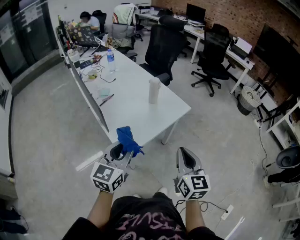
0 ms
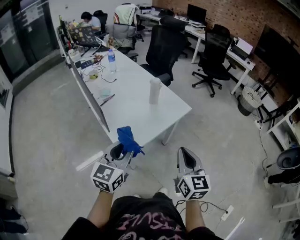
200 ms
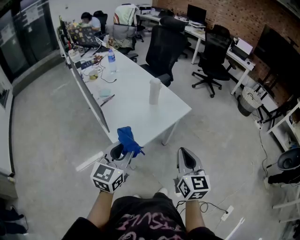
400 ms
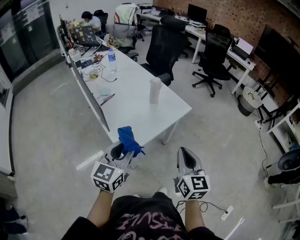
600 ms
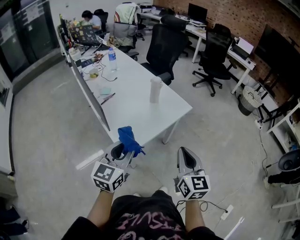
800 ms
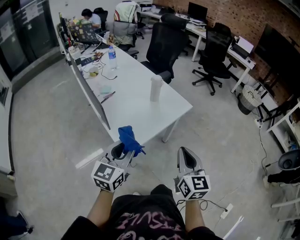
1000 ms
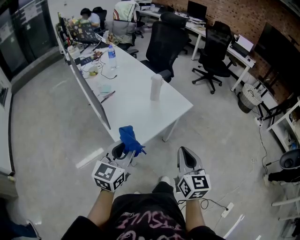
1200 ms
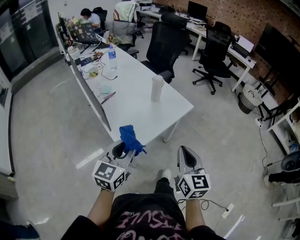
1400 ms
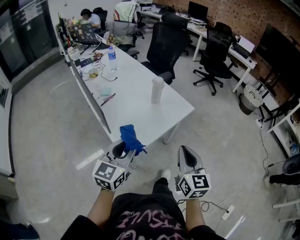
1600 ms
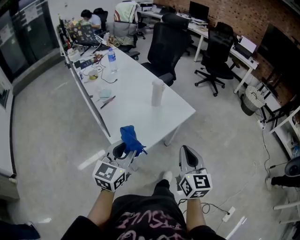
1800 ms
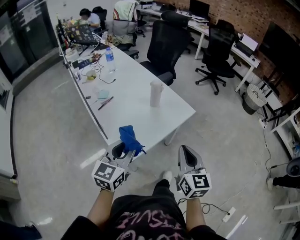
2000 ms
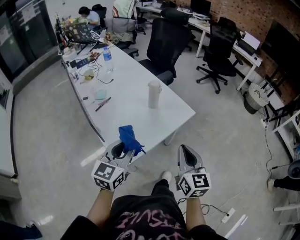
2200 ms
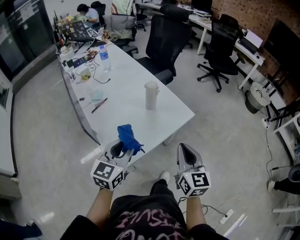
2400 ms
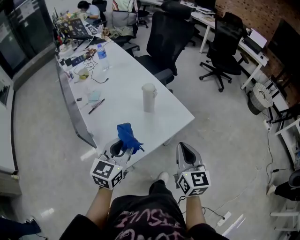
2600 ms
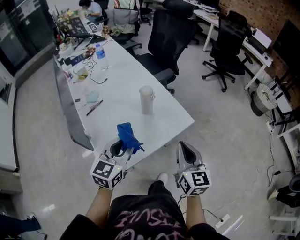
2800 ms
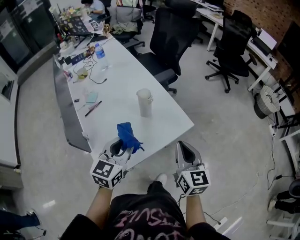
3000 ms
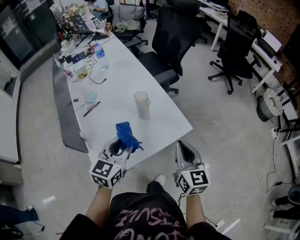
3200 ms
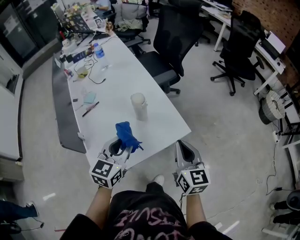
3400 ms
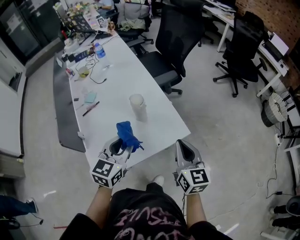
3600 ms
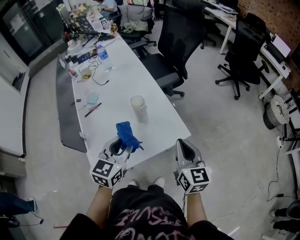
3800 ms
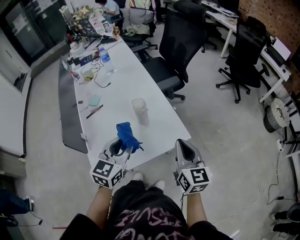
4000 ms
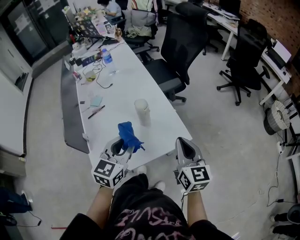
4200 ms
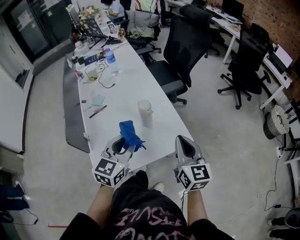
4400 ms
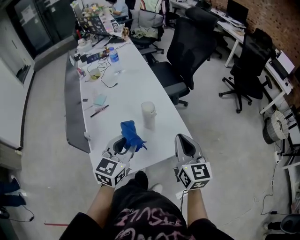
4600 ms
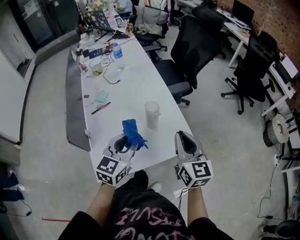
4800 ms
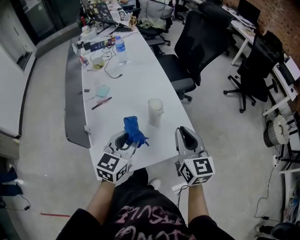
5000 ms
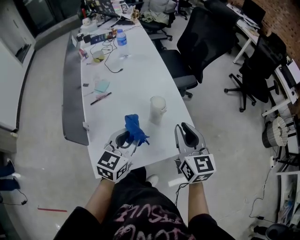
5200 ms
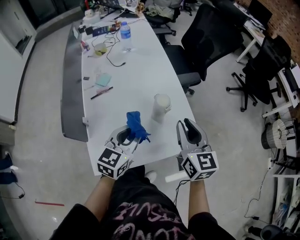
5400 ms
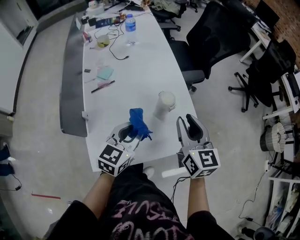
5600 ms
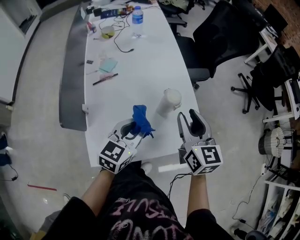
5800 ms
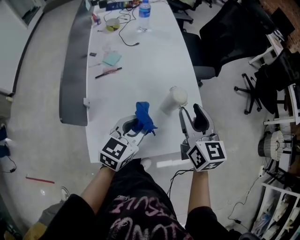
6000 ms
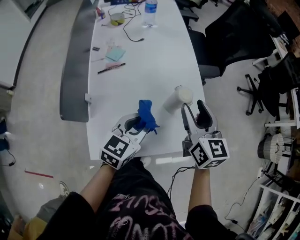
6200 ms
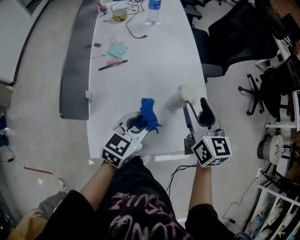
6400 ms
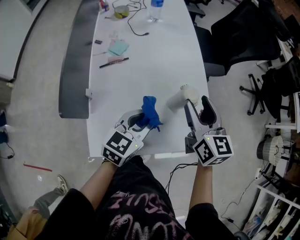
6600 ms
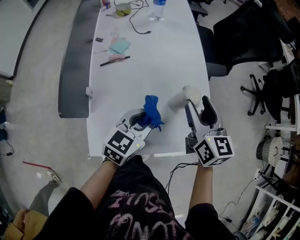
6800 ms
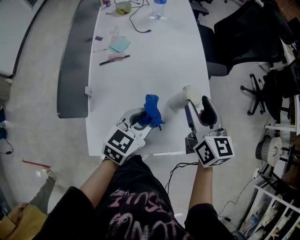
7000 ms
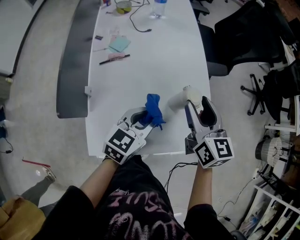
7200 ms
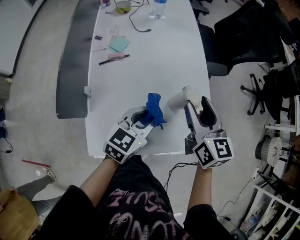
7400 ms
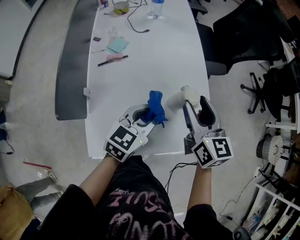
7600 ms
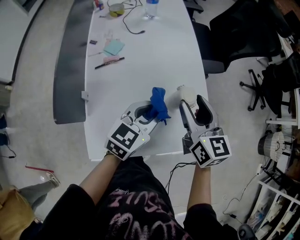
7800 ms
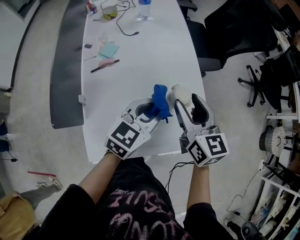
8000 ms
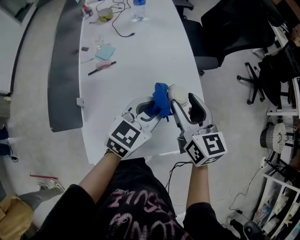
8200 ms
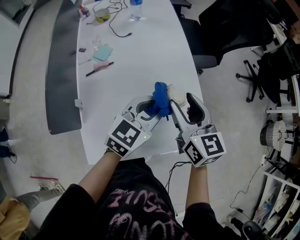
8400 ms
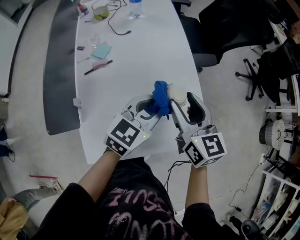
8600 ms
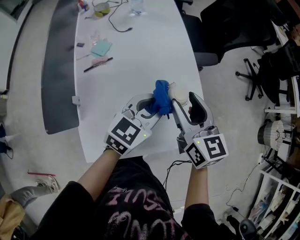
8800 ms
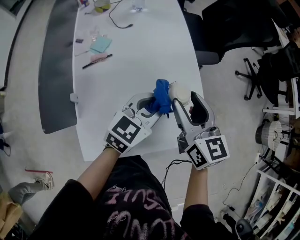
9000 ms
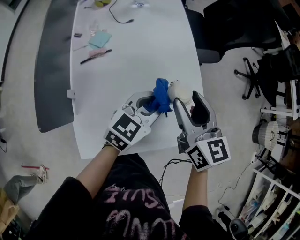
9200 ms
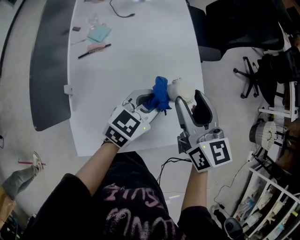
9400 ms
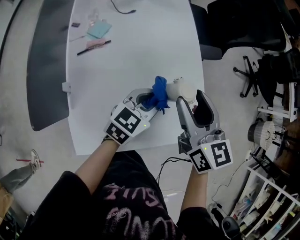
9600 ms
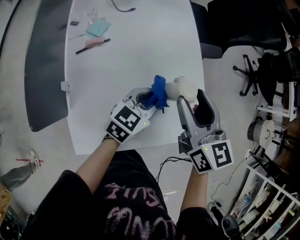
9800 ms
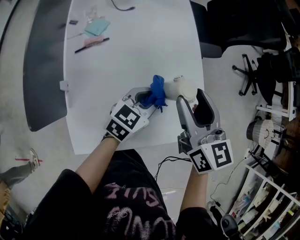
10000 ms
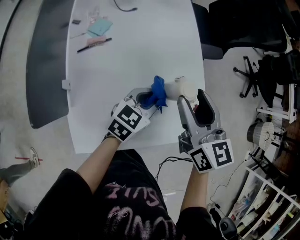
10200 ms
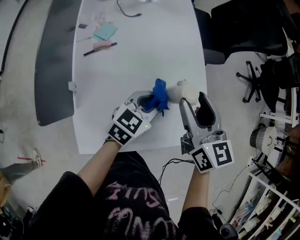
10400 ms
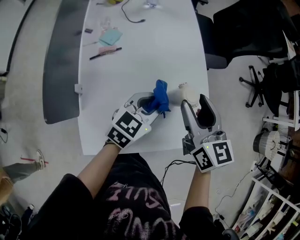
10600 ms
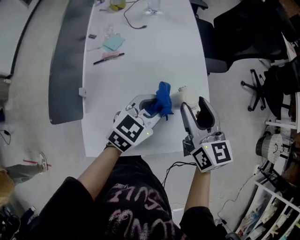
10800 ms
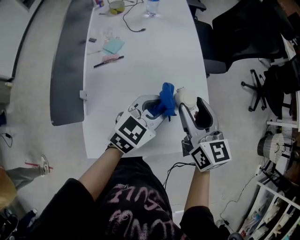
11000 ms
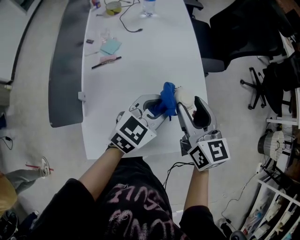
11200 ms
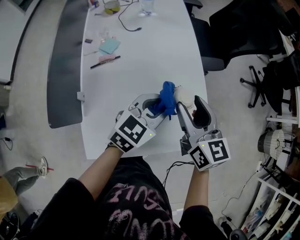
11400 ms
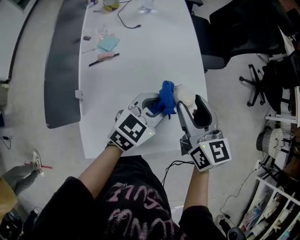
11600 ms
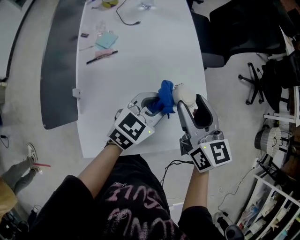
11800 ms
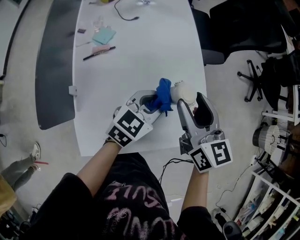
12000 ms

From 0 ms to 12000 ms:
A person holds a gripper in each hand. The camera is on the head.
From 0 ms to 1600 ms: There are only small adjustments of the grippers.
From 1600 ms to 3000 ms: Both grippers move forward, approximately 25 cm.
From 3000 ms to 4400 ms: The left gripper moves some 5 cm; the right gripper travels forward by approximately 10 cm.
From 4400 ms to 6000 ms: The right gripper shifts roughly 20 cm forward and to the left, and opens up, while the left gripper moves downward, forward and to the left, approximately 15 cm.
From 6000 ms to 7600 ms: The grippers make only small movements.
From 7600 ms to 9000 ms: The left gripper ends up roughly 5 cm from where it was.
From 9000 ms to 10400 ms: The left gripper goes about 5 cm downward.

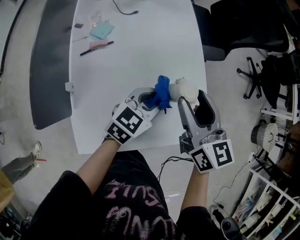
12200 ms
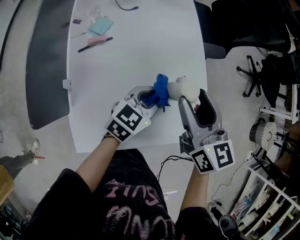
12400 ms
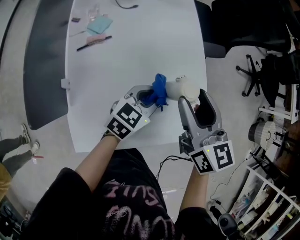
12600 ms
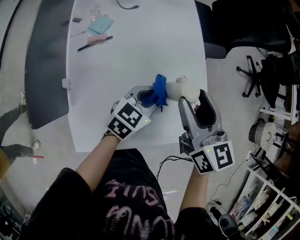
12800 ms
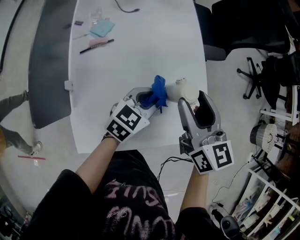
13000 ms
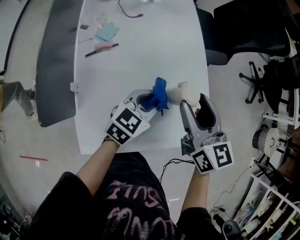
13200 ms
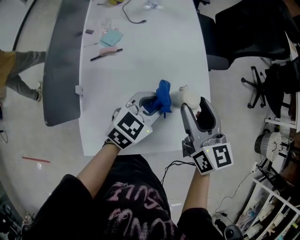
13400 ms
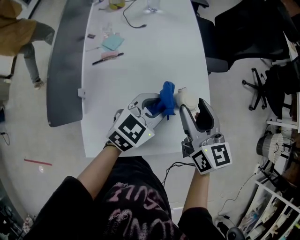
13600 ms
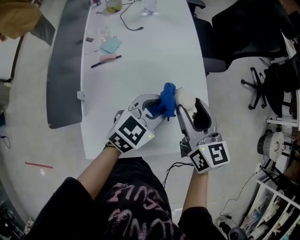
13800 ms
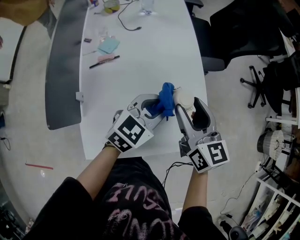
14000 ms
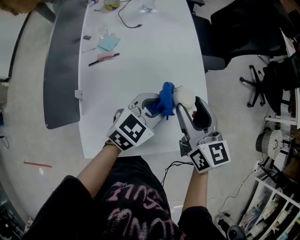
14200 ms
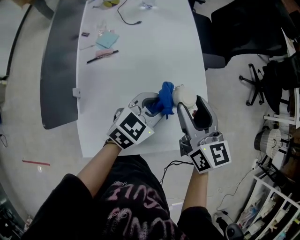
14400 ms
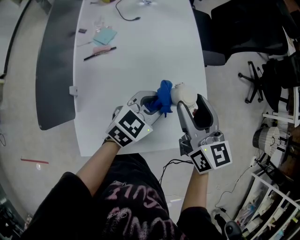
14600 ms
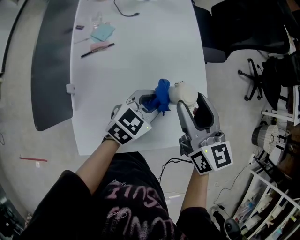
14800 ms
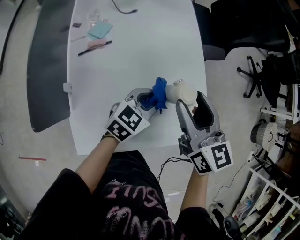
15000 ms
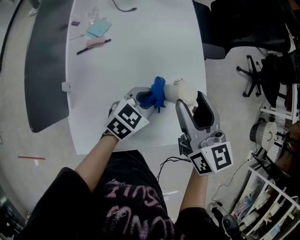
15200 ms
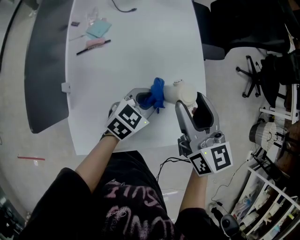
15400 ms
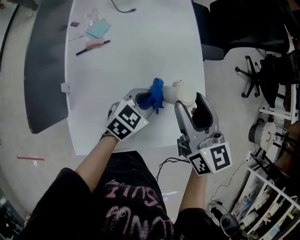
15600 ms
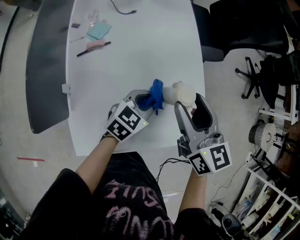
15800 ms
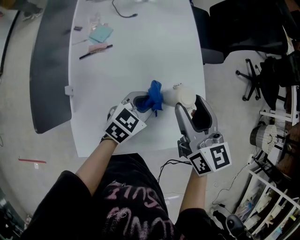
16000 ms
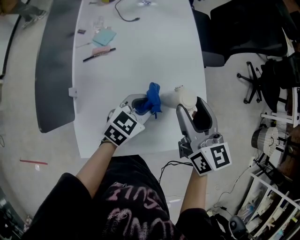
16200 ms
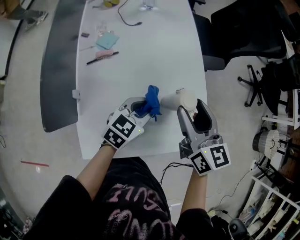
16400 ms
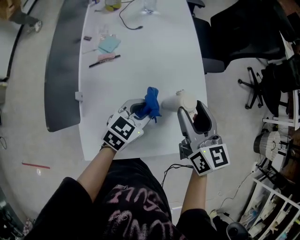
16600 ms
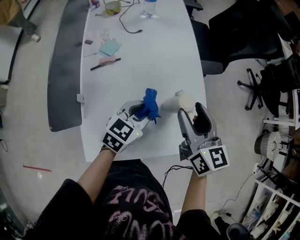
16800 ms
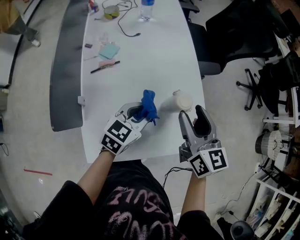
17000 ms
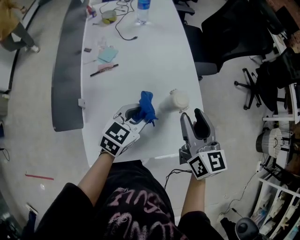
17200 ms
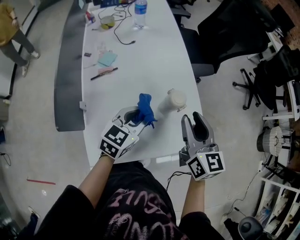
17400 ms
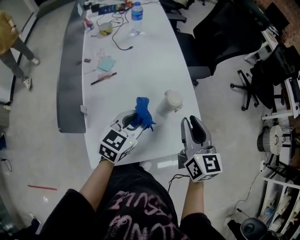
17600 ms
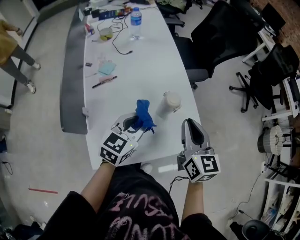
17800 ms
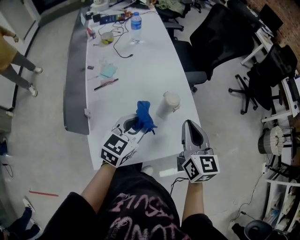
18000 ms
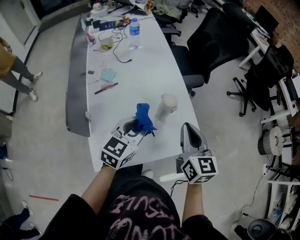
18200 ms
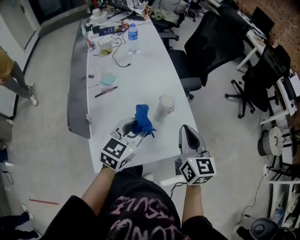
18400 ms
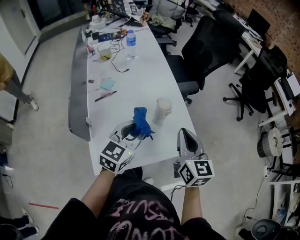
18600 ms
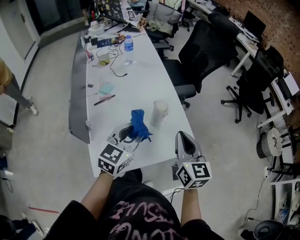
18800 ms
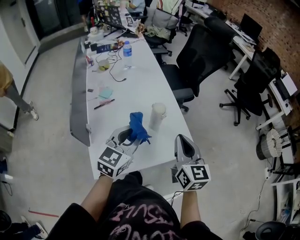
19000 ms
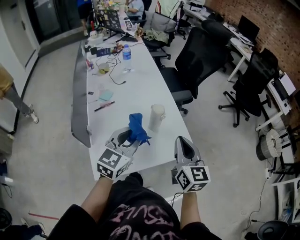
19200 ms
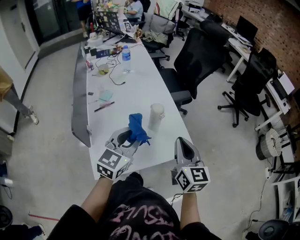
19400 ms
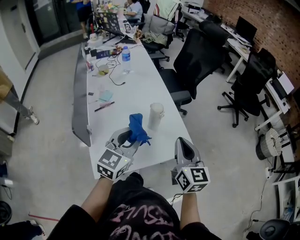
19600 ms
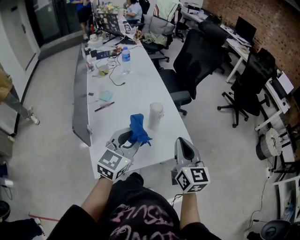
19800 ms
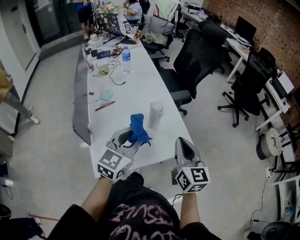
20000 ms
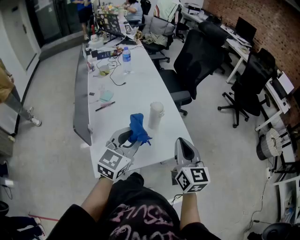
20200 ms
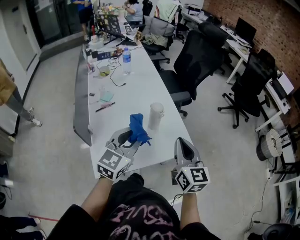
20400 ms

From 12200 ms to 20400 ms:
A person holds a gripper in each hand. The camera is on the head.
From 12200 ms to 13800 ms: The left gripper travels upward by some 5 cm.
From 13800 ms to 15400 ms: The left gripper goes about 10 cm downward.
From 15400 ms to 17200 ms: The left gripper is displaced upward by about 5 cm.
From 17200 ms to 18800 ms: The left gripper shifts about 15 cm upward and backward. Meanwhile the right gripper moves backward and to the right, roughly 10 cm, and closes up.
From 18800 ms to 20400 ms: The left gripper moves approximately 5 cm; the right gripper changes place by some 5 cm.

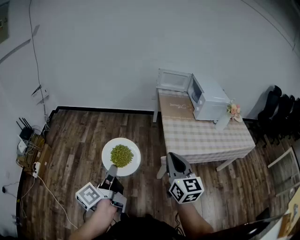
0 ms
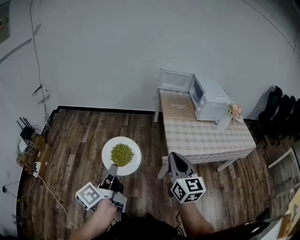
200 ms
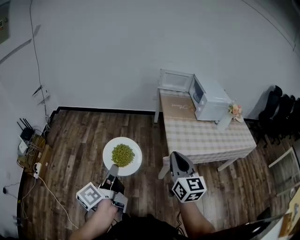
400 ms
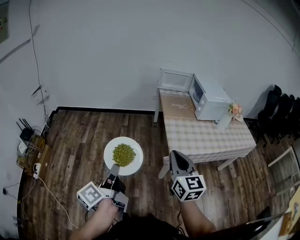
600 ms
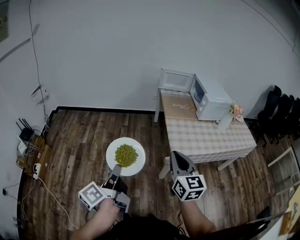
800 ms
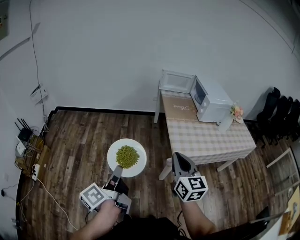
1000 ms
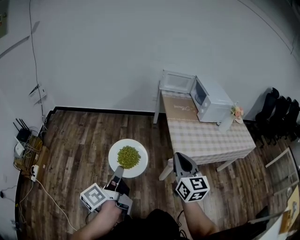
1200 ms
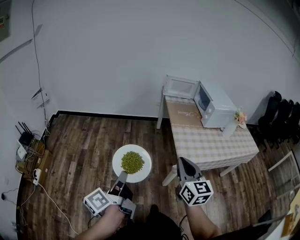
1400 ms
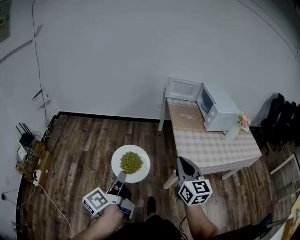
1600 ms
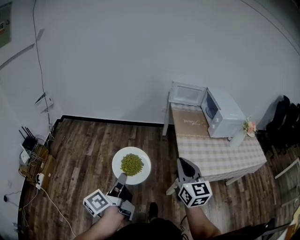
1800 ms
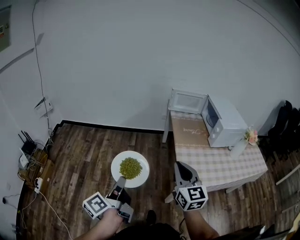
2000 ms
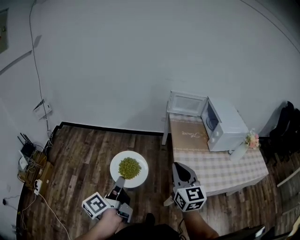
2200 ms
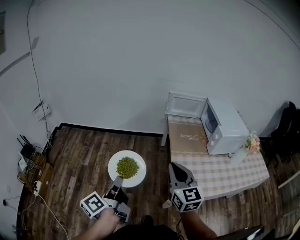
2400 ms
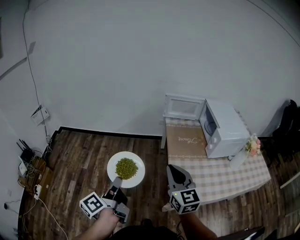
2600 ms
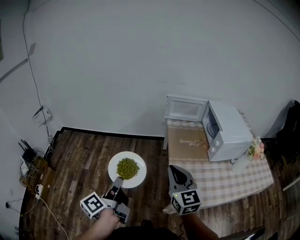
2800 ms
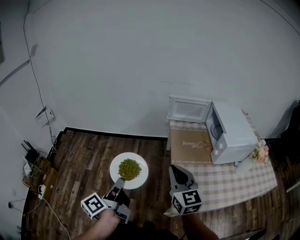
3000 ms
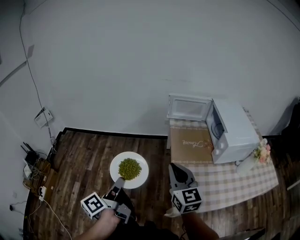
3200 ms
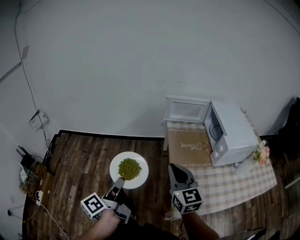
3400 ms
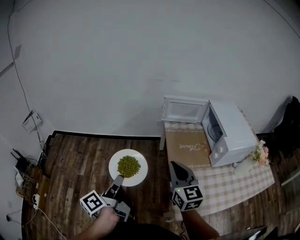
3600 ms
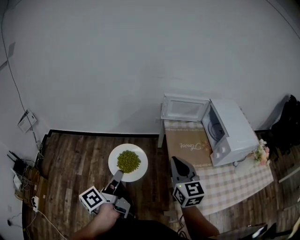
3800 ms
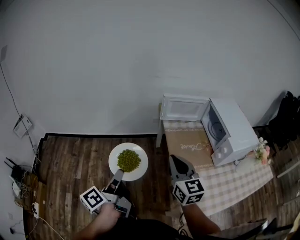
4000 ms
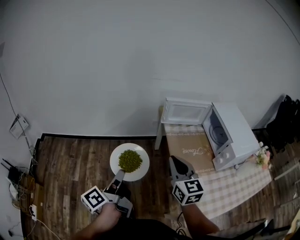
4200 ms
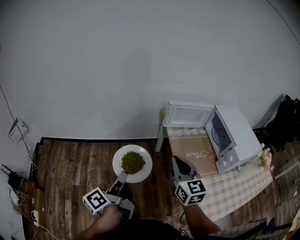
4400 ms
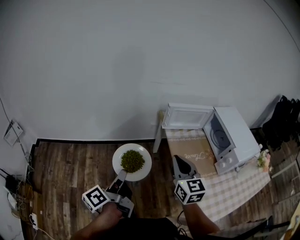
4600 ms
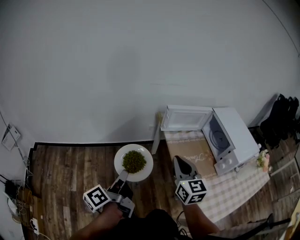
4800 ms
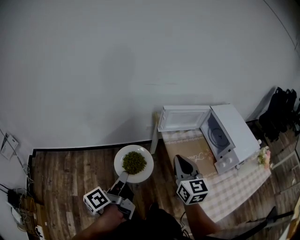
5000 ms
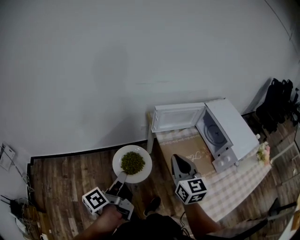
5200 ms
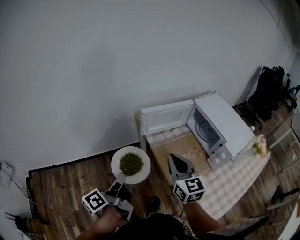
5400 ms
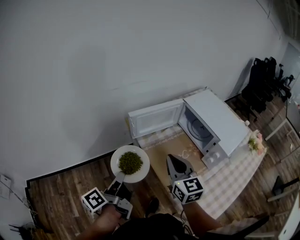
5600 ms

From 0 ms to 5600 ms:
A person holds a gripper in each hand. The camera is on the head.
From 0 ms to 1400 ms: The left gripper shifts by approximately 5 cm, while the right gripper changes place by approximately 5 cm.
From 1400 ms to 2800 ms: Both grippers move forward, some 25 cm.
From 2800 ms to 4200 ms: The two grippers go about 25 cm forward.
From 4200 ms to 5600 ms: The left gripper moves forward, about 20 cm, and swivels some 20 degrees. The right gripper shifts roughly 15 cm forward and to the right.
